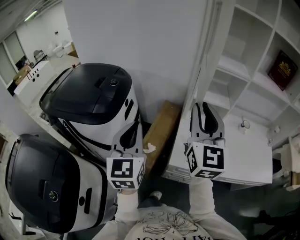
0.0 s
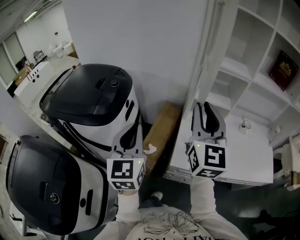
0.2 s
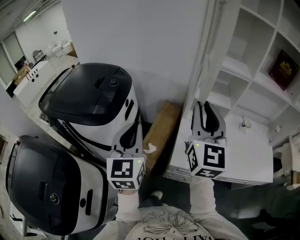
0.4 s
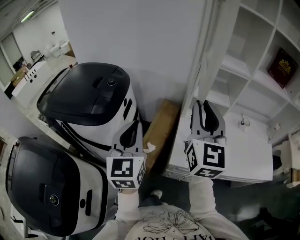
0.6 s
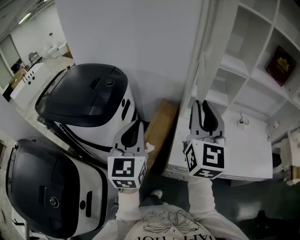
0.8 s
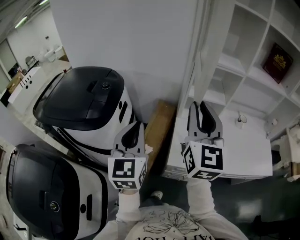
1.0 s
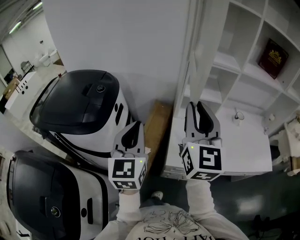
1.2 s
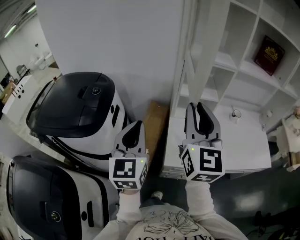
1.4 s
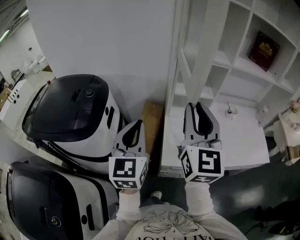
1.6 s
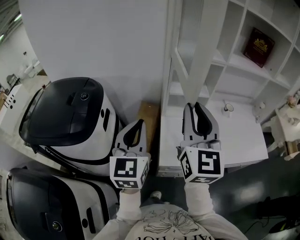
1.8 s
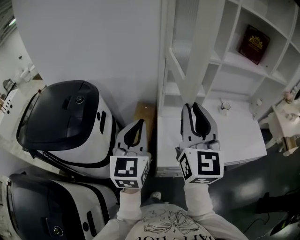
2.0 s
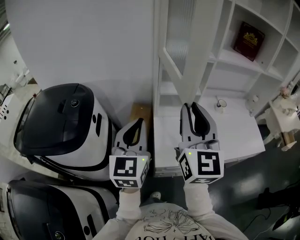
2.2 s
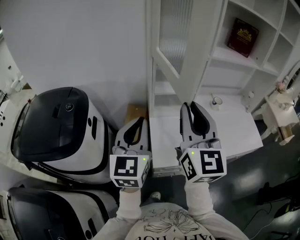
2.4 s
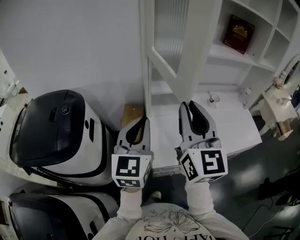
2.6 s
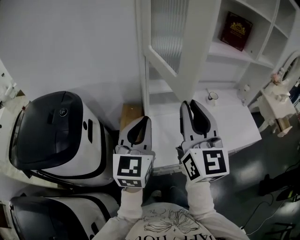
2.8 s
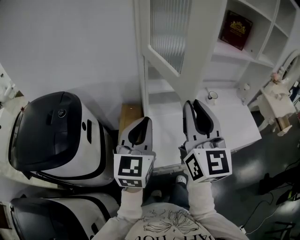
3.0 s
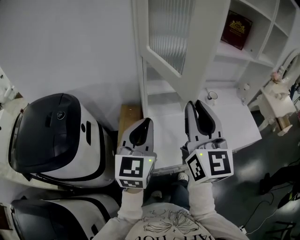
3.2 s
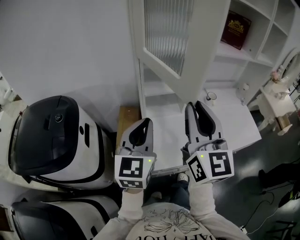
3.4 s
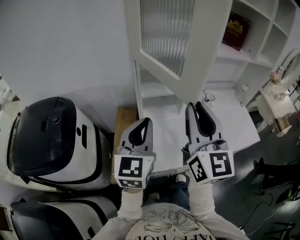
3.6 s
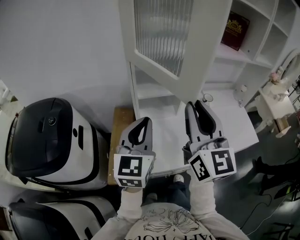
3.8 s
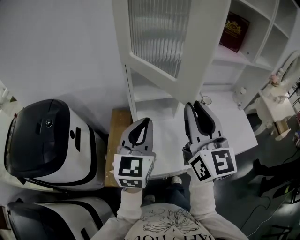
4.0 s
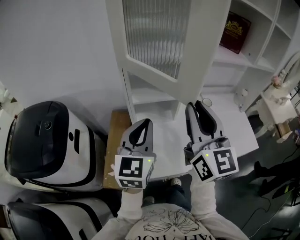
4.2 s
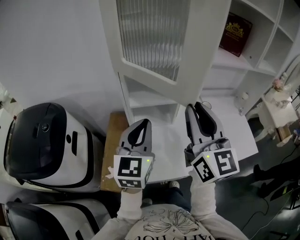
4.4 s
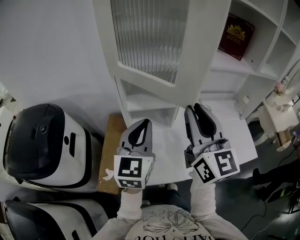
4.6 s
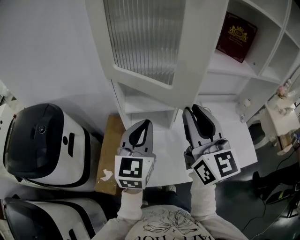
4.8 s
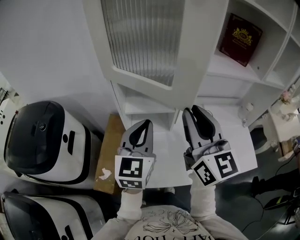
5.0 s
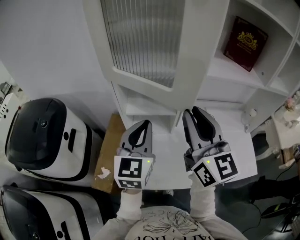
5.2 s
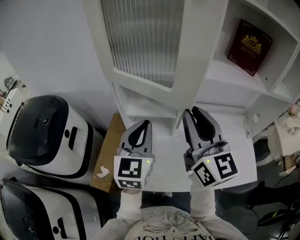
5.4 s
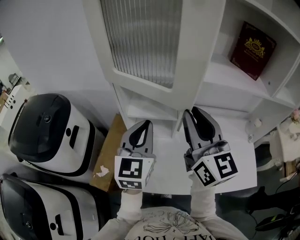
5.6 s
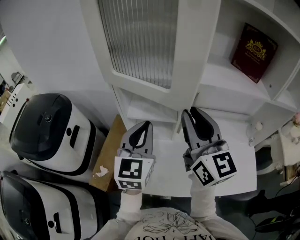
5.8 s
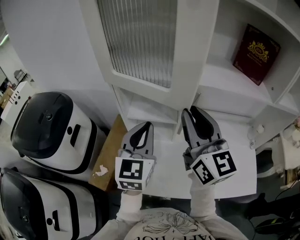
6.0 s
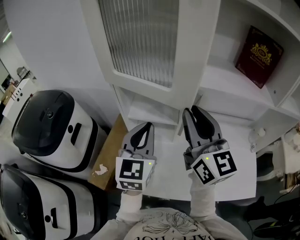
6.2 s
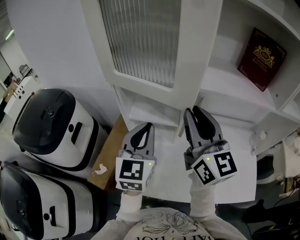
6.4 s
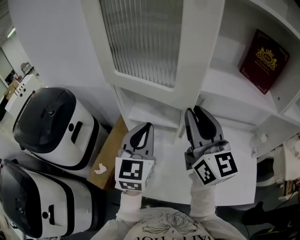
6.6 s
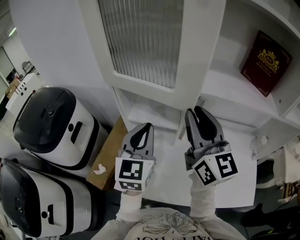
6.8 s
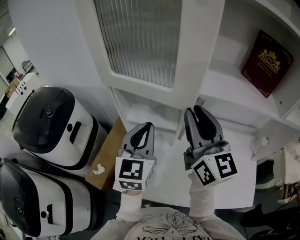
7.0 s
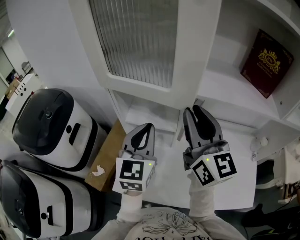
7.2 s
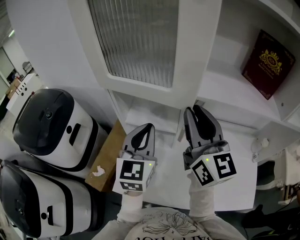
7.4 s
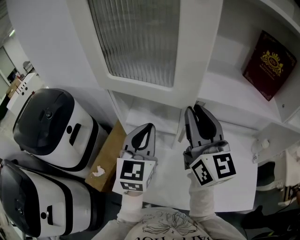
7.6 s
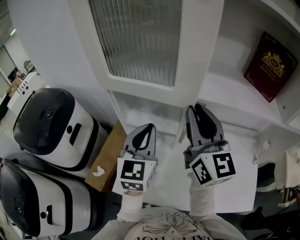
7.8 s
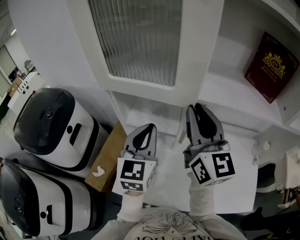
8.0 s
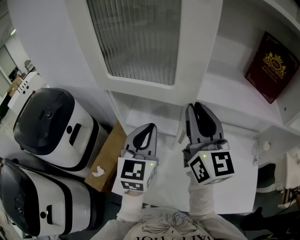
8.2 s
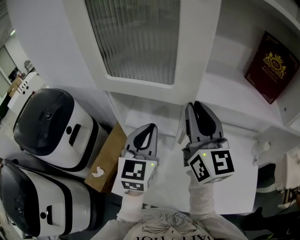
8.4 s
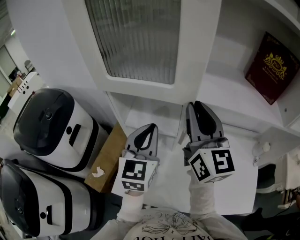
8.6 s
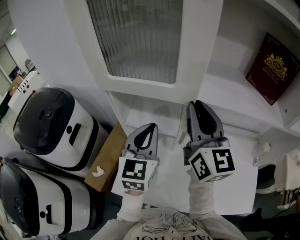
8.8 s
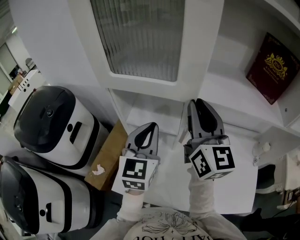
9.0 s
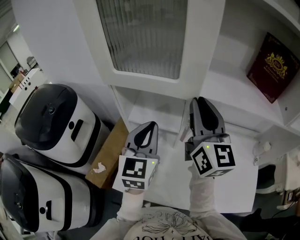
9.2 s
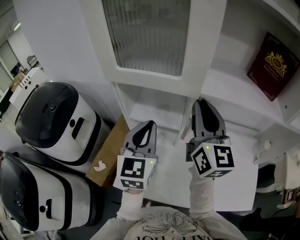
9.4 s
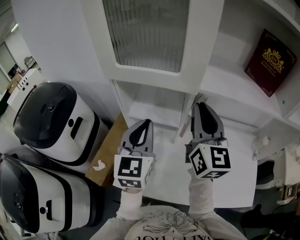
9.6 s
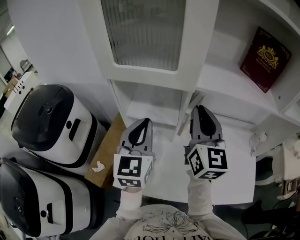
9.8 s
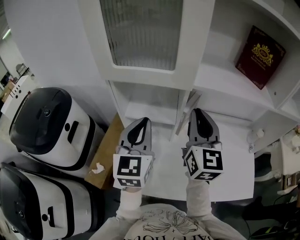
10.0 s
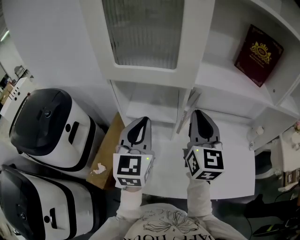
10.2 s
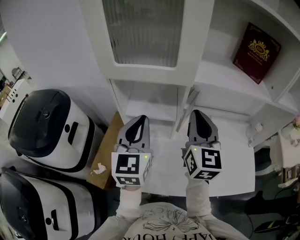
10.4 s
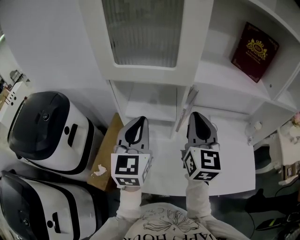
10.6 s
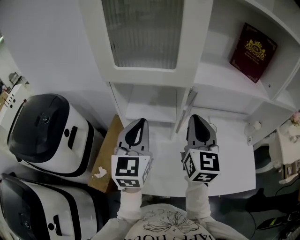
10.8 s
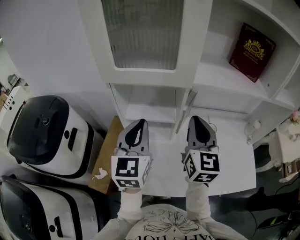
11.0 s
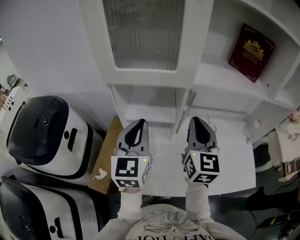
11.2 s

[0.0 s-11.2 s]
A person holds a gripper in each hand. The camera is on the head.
0.0 to 1.6 s: The left gripper moves to the right and forward, approximately 10 cm.
1.6 to 3.2 s: The right gripper goes roughly 10 cm to the right; the left gripper moves to the right and forward, approximately 10 cm.
3.2 to 4.8 s: Both grippers travel together forward and to the right, about 20 cm.
4.8 to 6.4 s: The left gripper is displaced to the right by roughly 5 cm. Meanwhile the right gripper shifts some 10 cm forward and to the right.
6.4 to 8.0 s: The right gripper shifts about 5 cm forward; the left gripper moves roughly 5 cm.
8.0 to 9.6 s: The grippers stay close to where they were, moving slightly.
9.6 to 11.2 s: The right gripper heads backward, covering approximately 5 cm.

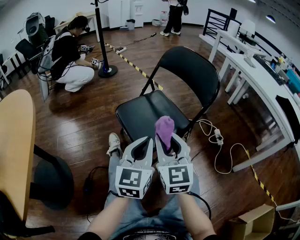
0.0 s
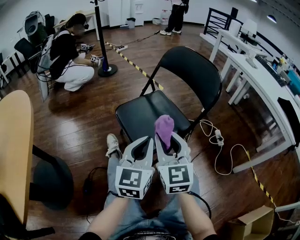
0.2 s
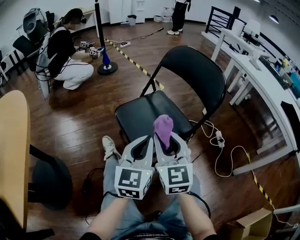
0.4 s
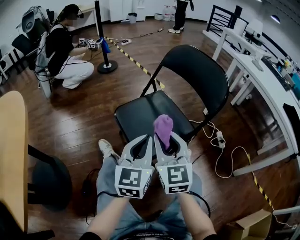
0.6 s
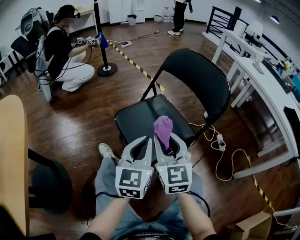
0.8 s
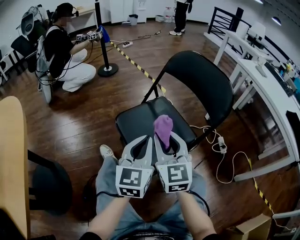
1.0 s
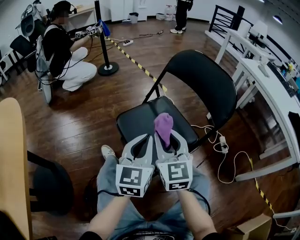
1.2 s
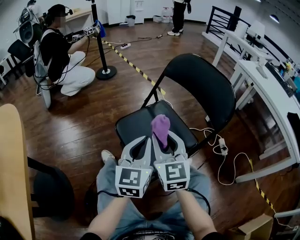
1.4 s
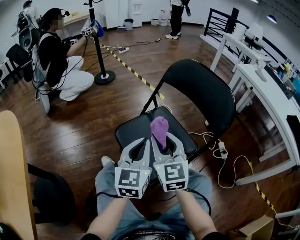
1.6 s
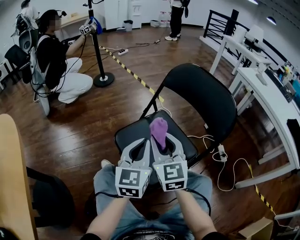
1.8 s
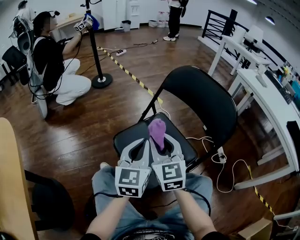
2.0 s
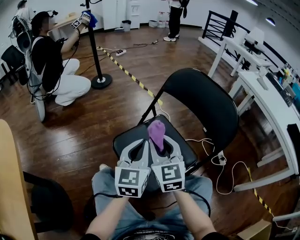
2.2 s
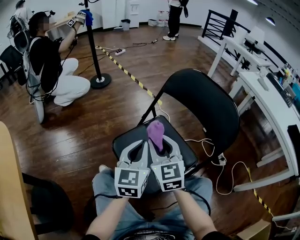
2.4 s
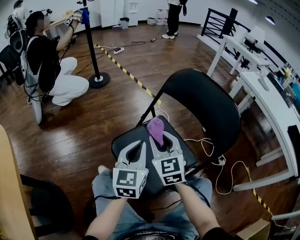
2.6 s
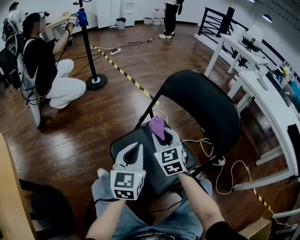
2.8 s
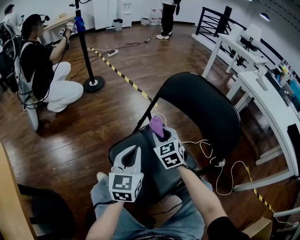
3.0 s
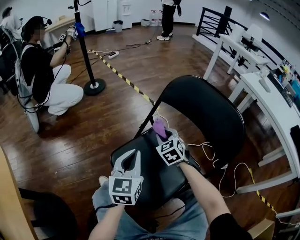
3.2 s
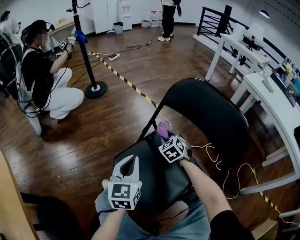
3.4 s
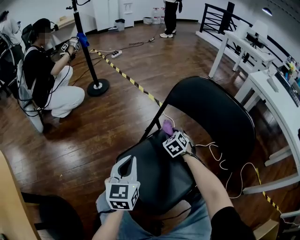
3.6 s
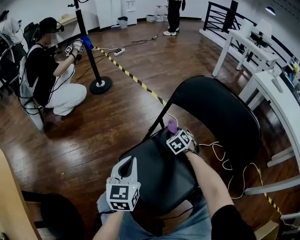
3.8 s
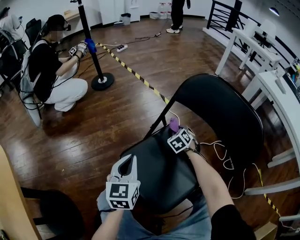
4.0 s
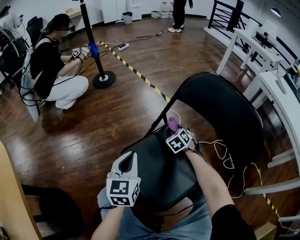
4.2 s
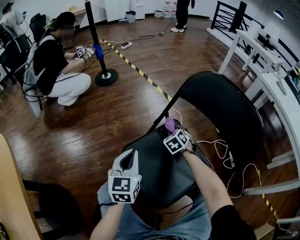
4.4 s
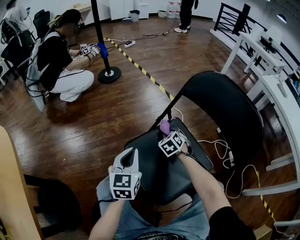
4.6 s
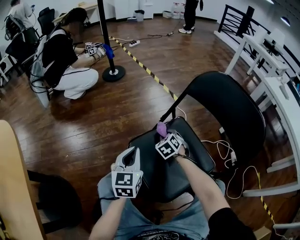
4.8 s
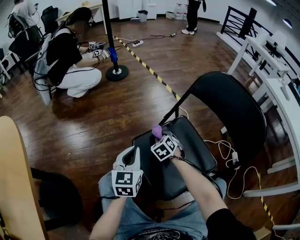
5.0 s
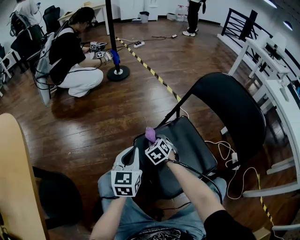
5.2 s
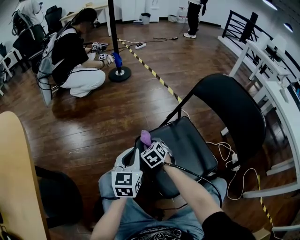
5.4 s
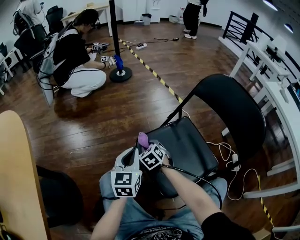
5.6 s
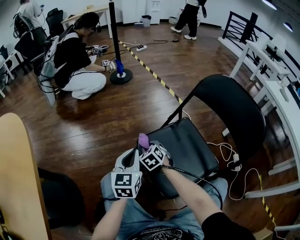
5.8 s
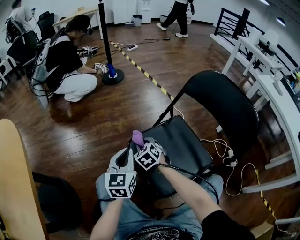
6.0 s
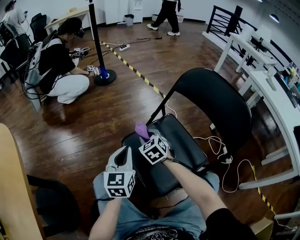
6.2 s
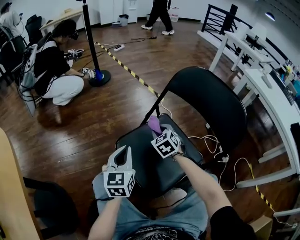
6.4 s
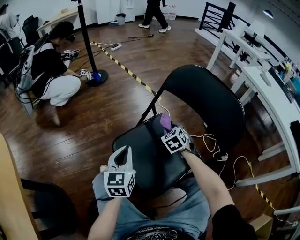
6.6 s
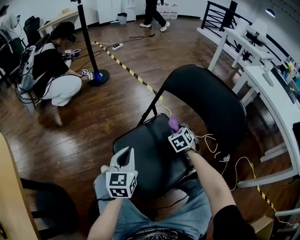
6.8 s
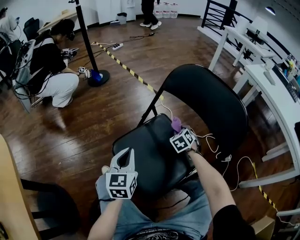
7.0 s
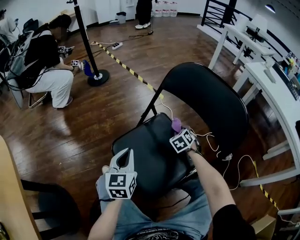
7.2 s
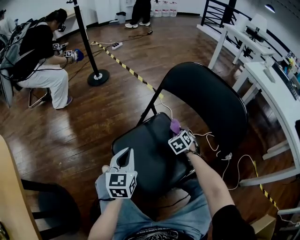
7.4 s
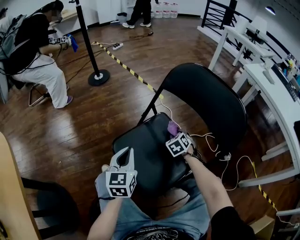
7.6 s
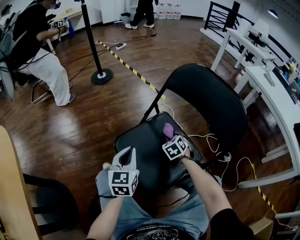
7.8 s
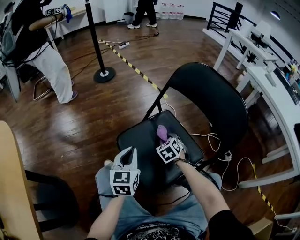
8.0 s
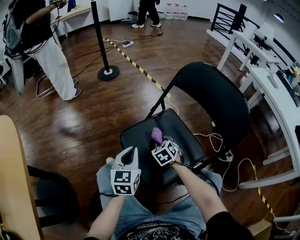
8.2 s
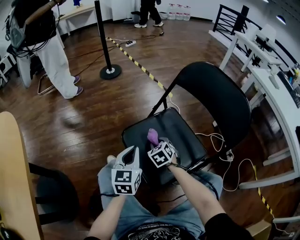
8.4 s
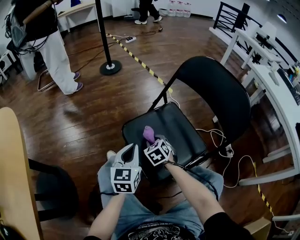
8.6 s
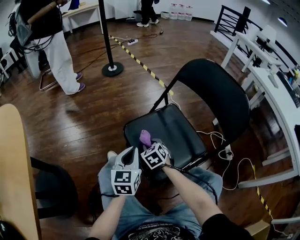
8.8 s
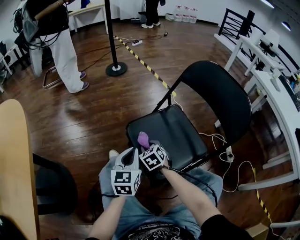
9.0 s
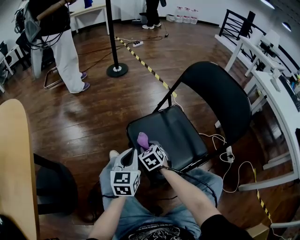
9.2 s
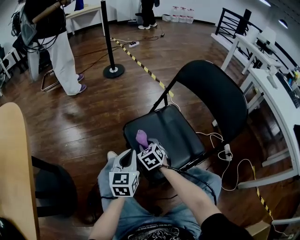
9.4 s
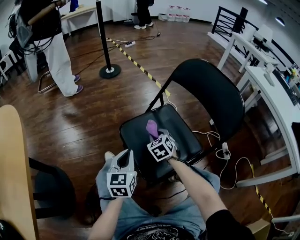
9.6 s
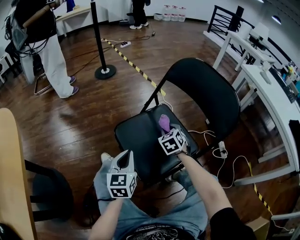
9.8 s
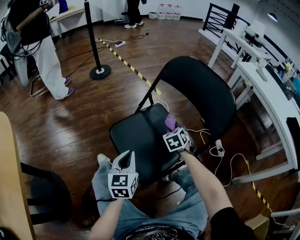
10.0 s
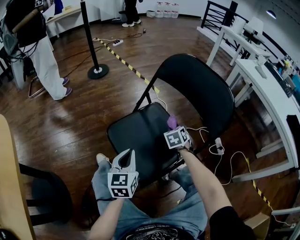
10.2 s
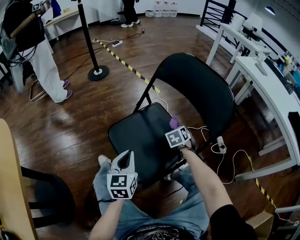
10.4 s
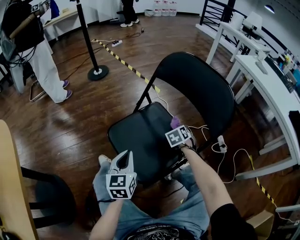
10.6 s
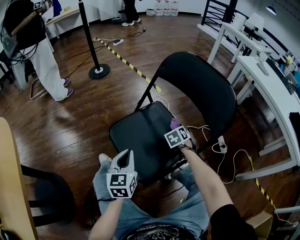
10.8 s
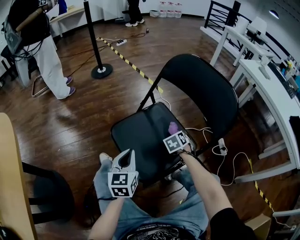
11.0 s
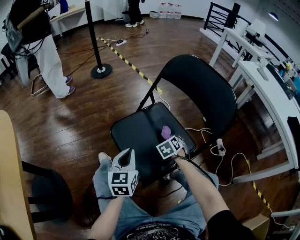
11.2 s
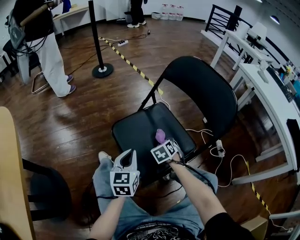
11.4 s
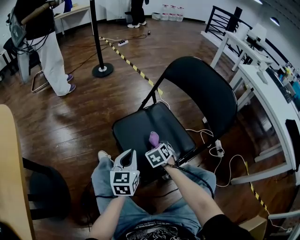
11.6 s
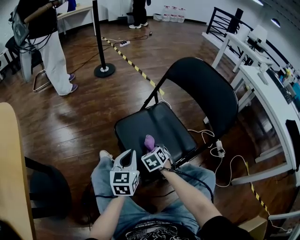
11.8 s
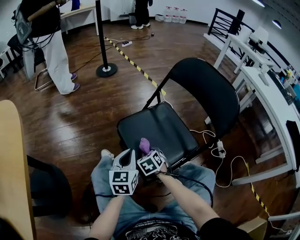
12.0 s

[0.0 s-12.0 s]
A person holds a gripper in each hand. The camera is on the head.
0.0 to 1.6 s: Both grippers travel together forward, roughly 20 cm.
1.6 to 3.0 s: The right gripper is displaced forward and downward by approximately 25 cm, and turns by about 20 degrees. The left gripper goes some 10 cm forward.
3.0 to 4.4 s: The left gripper moves to the left and downward, some 10 cm; the right gripper heads downward and forward, covering about 15 cm, and turns by about 30 degrees.
4.4 to 6.0 s: The left gripper is displaced to the left and backward by about 10 cm. Meanwhile the right gripper is displaced to the left and backward by about 25 cm.
6.0 to 7.6 s: The right gripper travels to the right by some 30 cm, and changes its angle by about 20 degrees. The left gripper is displaced to the right by roughly 10 cm.
7.6 to 9.0 s: The left gripper goes approximately 10 cm backward and to the left; the right gripper shifts about 30 cm to the left and backward, and turns by about 20 degrees.
9.0 to 10.4 s: The right gripper travels to the right by roughly 30 cm, and changes its angle by approximately 30 degrees, while the left gripper is displaced to the right by approximately 5 cm.
10.4 to 12.0 s: The right gripper goes roughly 25 cm to the left and backward. Meanwhile the left gripper changes place by approximately 5 cm.
